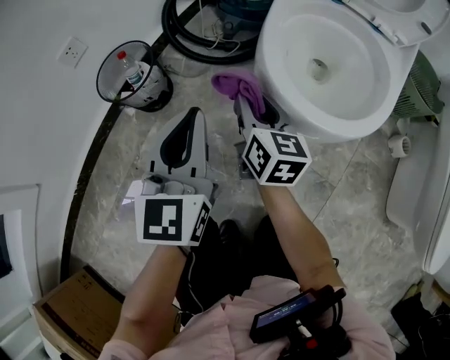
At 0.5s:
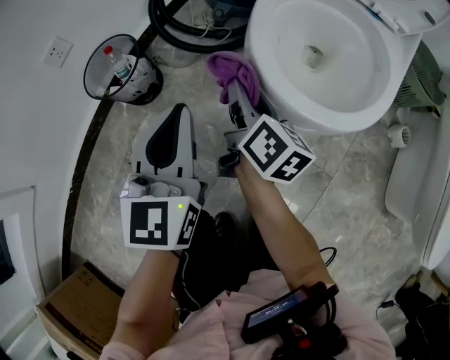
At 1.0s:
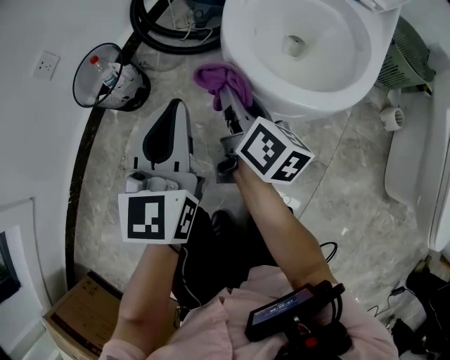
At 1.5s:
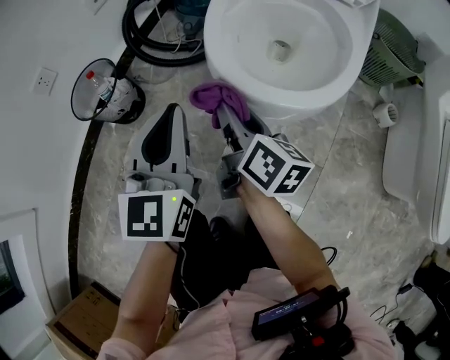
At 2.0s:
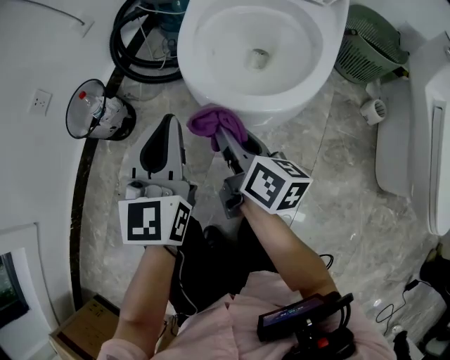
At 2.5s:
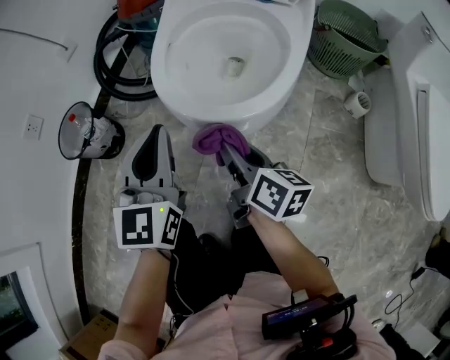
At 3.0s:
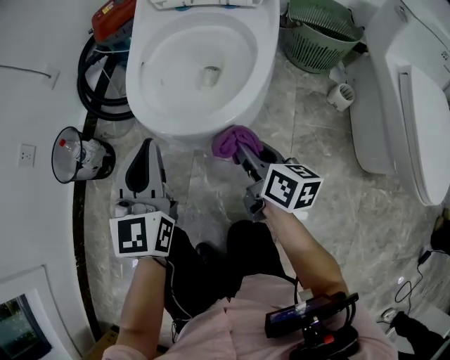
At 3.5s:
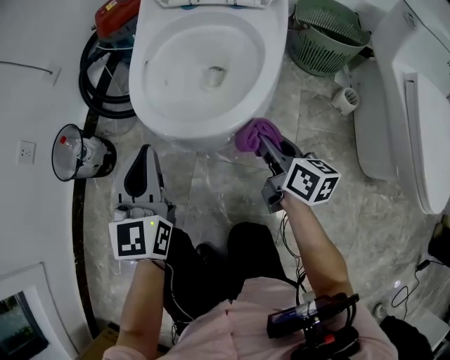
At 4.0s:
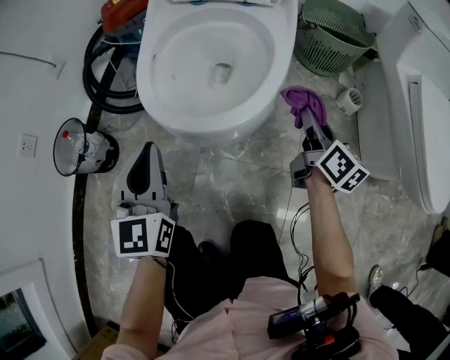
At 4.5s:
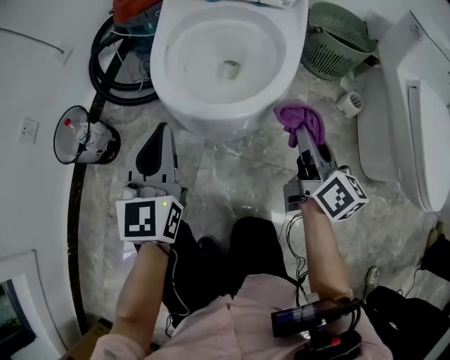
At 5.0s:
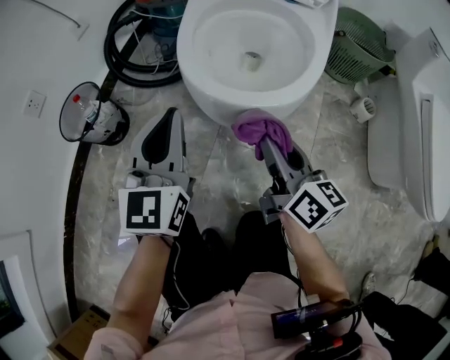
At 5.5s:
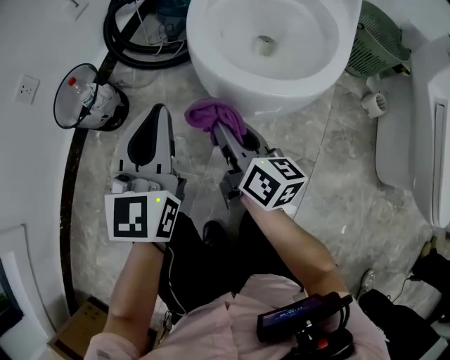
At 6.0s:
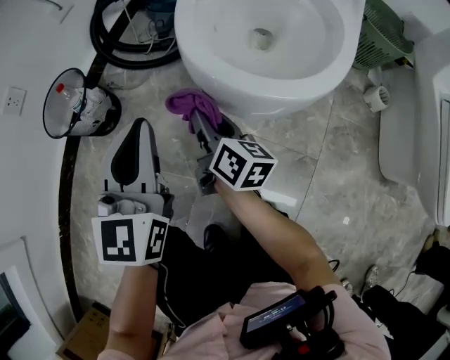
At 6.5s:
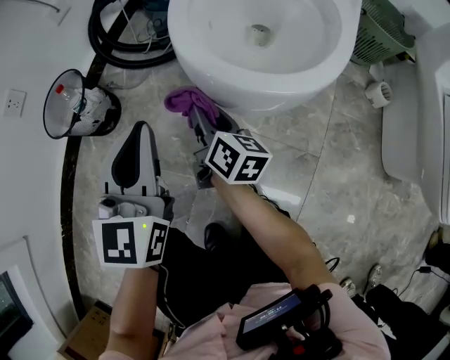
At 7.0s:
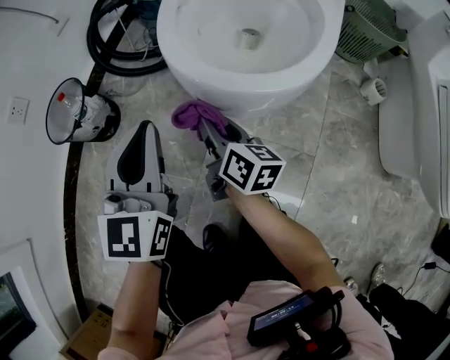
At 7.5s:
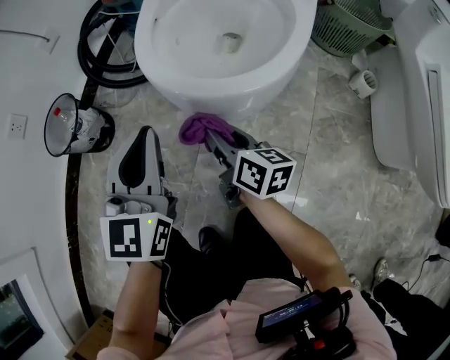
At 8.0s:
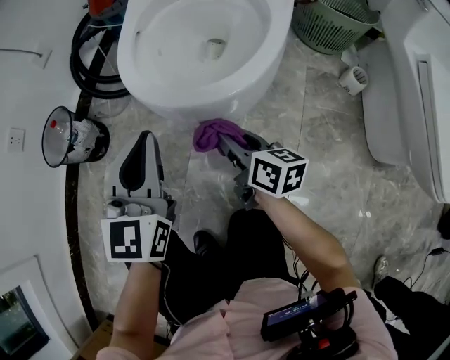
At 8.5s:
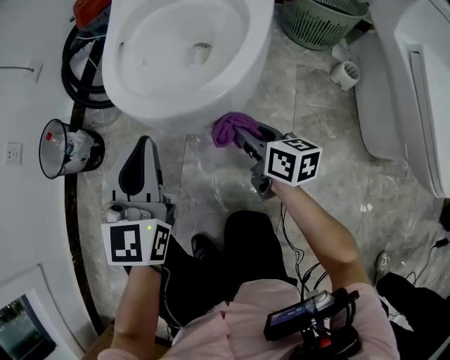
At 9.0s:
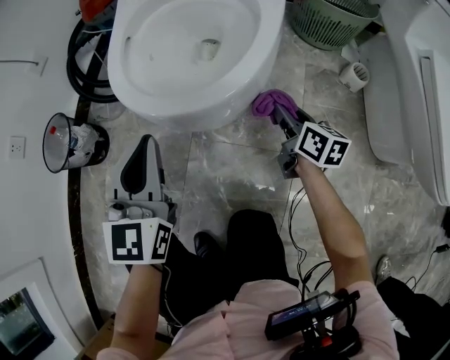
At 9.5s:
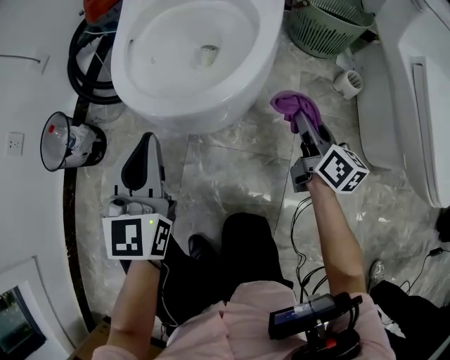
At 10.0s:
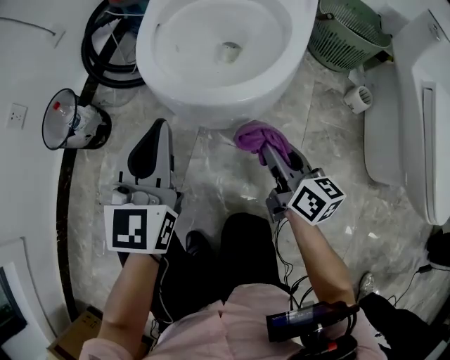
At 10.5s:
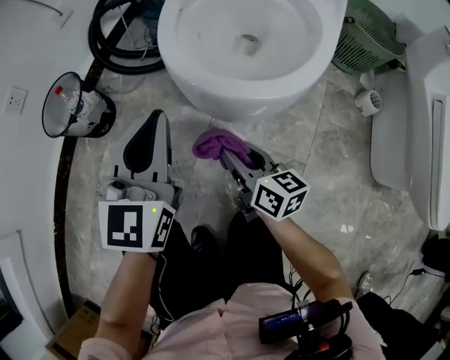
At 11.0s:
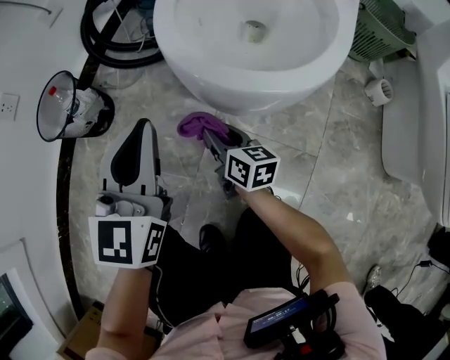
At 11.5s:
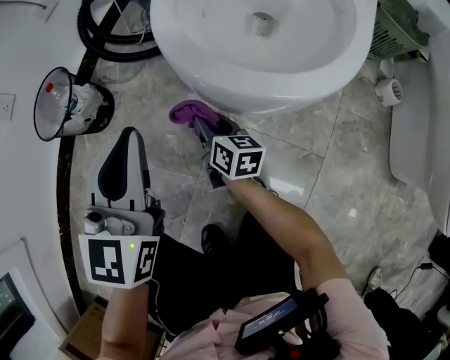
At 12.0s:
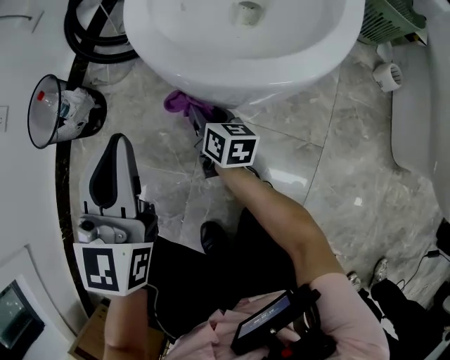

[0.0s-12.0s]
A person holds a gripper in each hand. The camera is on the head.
0.0s to 2.0s: The right gripper is displaced to the right and backward by roughly 15 cm, and swivels about 30 degrees; the left gripper heads to the right, covering roughly 10 cm.
2.0s to 4.0s: The right gripper heads to the right, covering about 30 cm, and rotates about 30 degrees.
4.0s to 6.0s: The left gripper travels to the left by approximately 10 cm; the right gripper goes roughly 35 cm to the left, and swivels about 20 degrees.
6.0s to 8.0s: The left gripper travels to the right by some 10 cm, while the right gripper goes approximately 15 cm to the right and backward.
8.0s to 10.0s: The right gripper is displaced to the right by approximately 10 cm.
10.0s to 12.0s: The left gripper moves to the left, roughly 10 cm; the right gripper goes roughly 30 cm to the left, downward and forward.

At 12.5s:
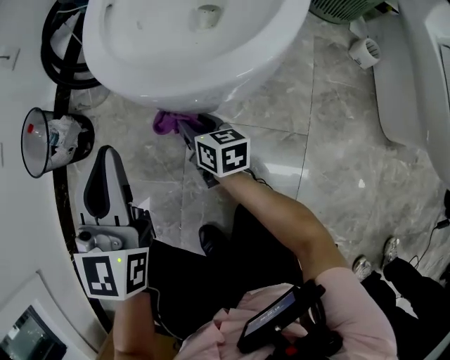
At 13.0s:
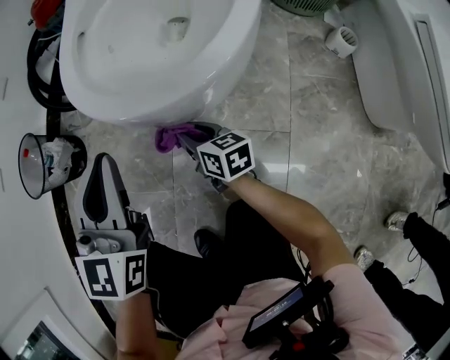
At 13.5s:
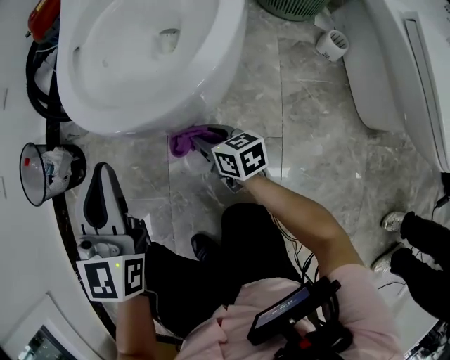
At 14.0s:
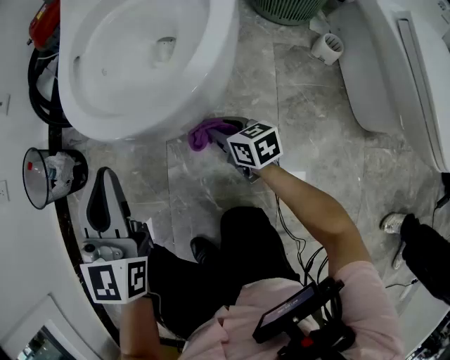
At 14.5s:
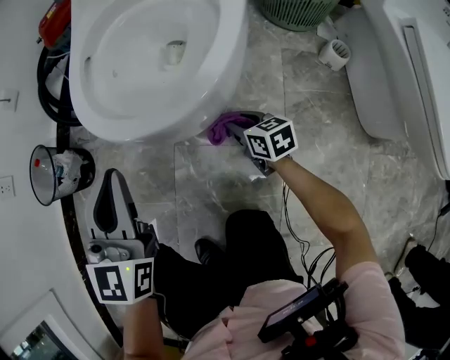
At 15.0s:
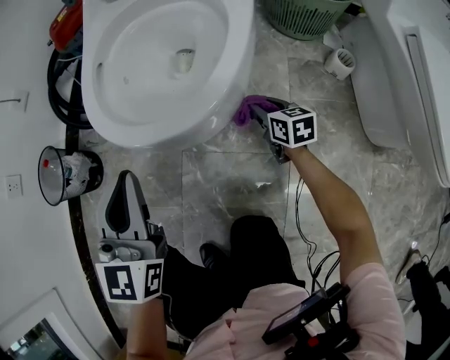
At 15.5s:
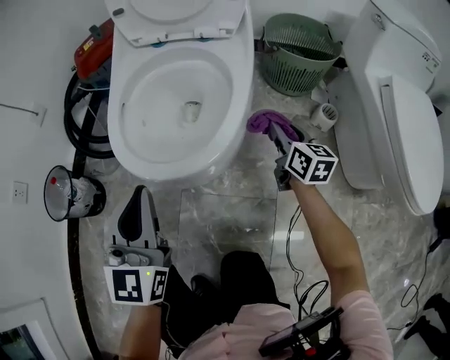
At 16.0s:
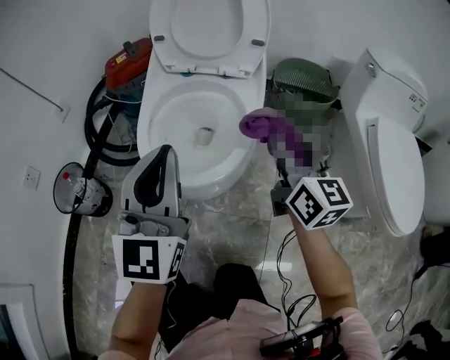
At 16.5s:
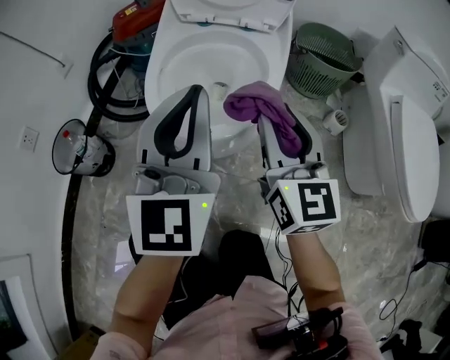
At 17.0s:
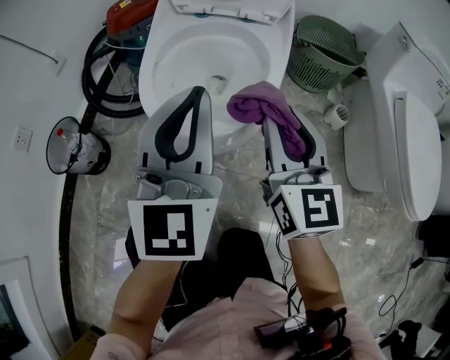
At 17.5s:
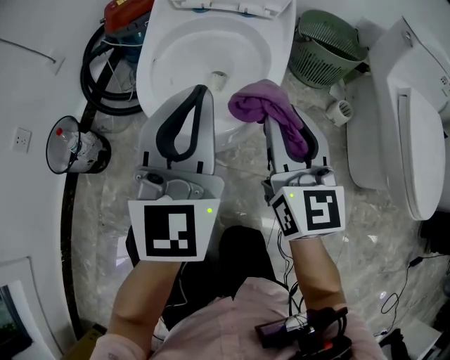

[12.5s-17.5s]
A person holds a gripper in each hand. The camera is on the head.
12.5s to 15.0s: The left gripper shifts approximately 10 cm to the right; the right gripper moves to the right, about 30 cm.
15.0s to 17.5s: The left gripper is displaced upward and to the right by some 15 cm; the right gripper moves upward, some 35 cm, and tips its fingers upward by some 30 degrees.

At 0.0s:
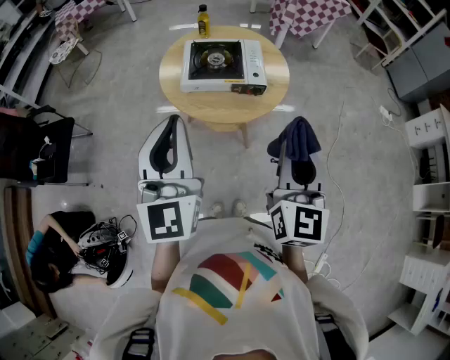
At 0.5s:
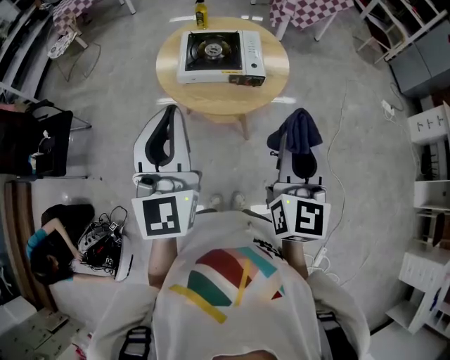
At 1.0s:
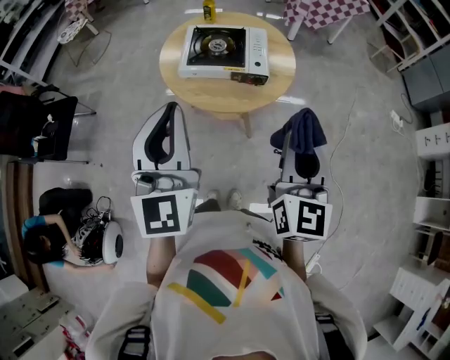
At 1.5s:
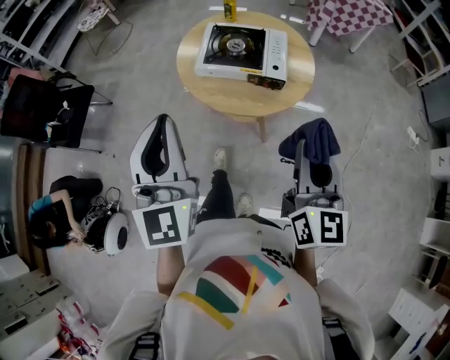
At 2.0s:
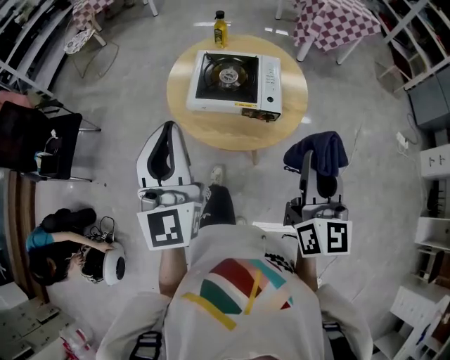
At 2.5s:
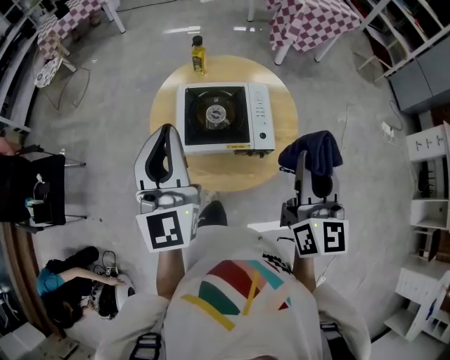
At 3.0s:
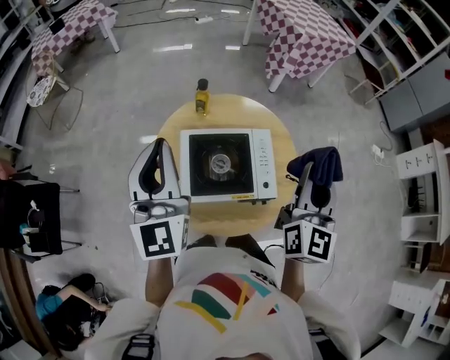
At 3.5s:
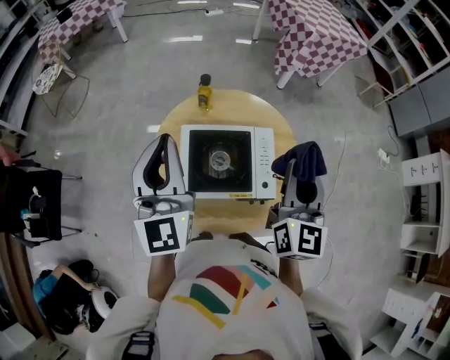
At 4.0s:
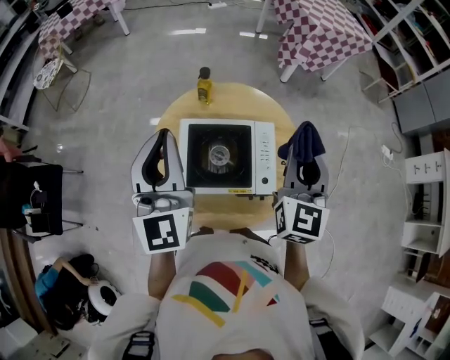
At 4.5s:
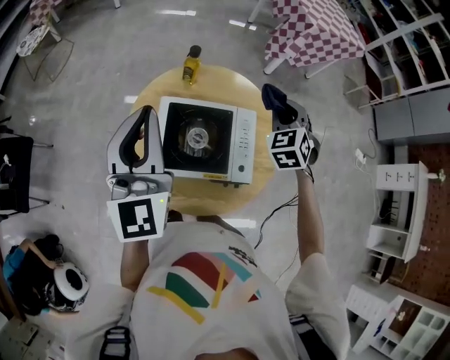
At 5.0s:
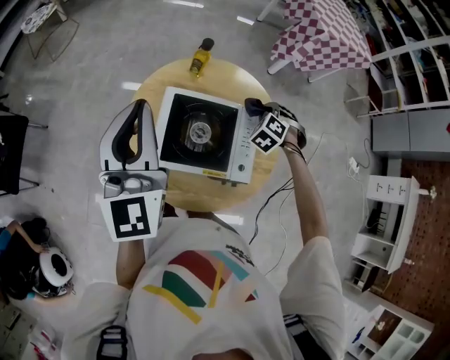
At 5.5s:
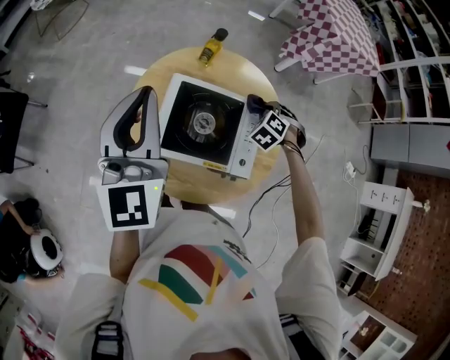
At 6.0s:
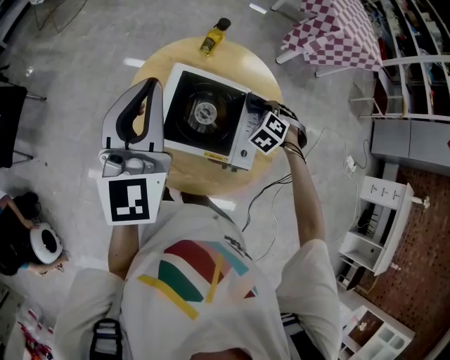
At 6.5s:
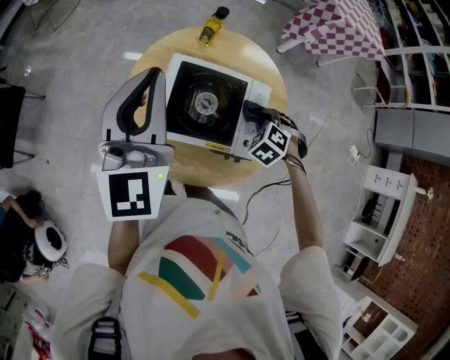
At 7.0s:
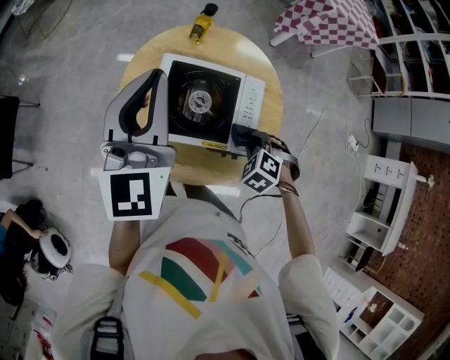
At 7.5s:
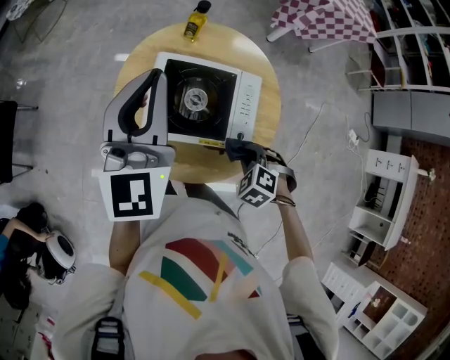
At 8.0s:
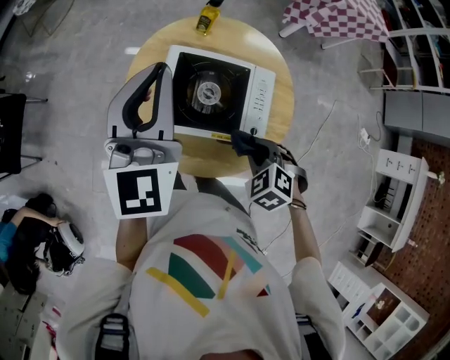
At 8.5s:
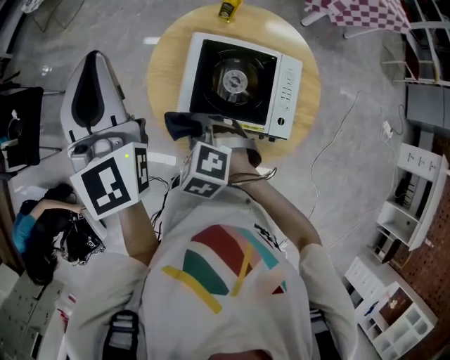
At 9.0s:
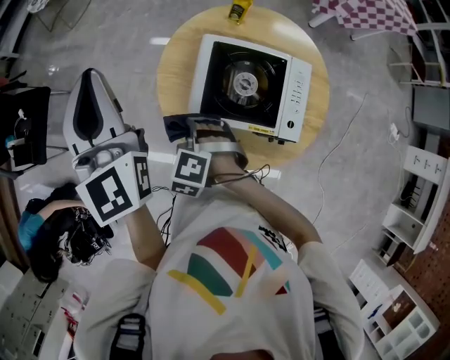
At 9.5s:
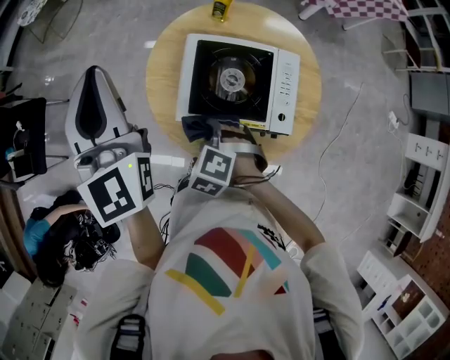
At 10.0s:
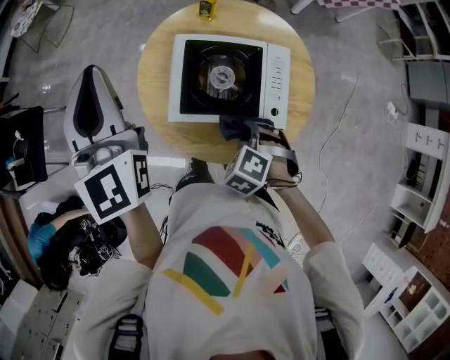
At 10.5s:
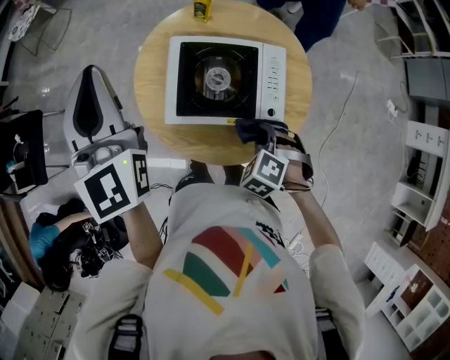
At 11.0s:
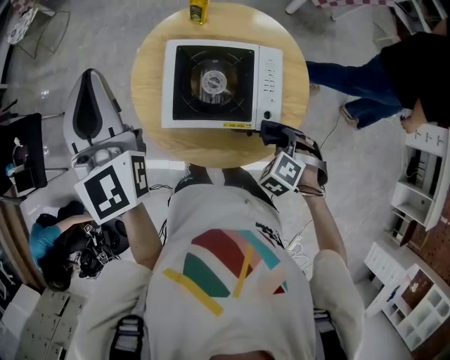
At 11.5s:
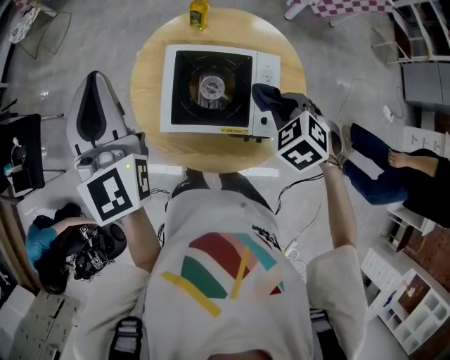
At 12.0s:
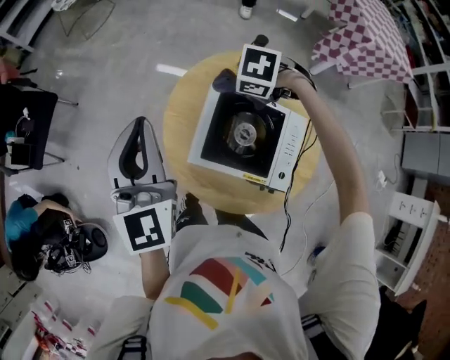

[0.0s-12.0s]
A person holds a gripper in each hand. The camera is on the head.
0.0s to 2.0s: The grippers both shift forward by roughly 10 cm.
2.0s to 4.0s: Both grippers move forward, approximately 30 cm. The right gripper changes its angle by approximately 20 degrees.
4.0s to 6.0s: The right gripper goes approximately 30 cm downward, and tilts its fingers approximately 60 degrees downward, while the left gripper moves approximately 5 cm.
6.0s to 8.0s: The right gripper travels backward by about 20 cm.
8.0s to 10.0s: The right gripper goes to the left and returns, some 25 cm each way; the left gripper moves to the left, roughly 10 cm.
10.0s to 12.0s: The left gripper goes about 5 cm downward, while the right gripper shifts by roughly 25 cm, and rotates approximately 40 degrees.
